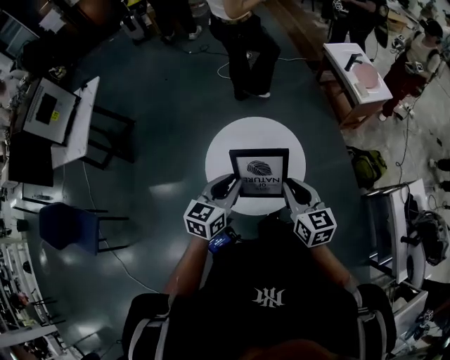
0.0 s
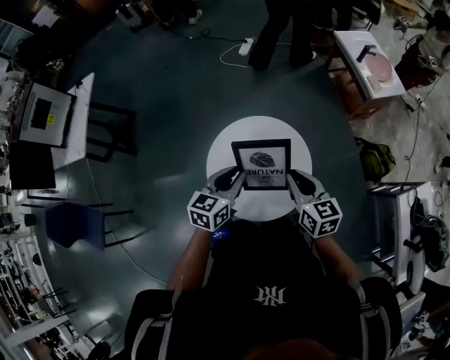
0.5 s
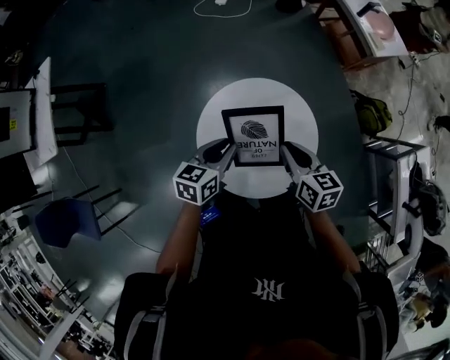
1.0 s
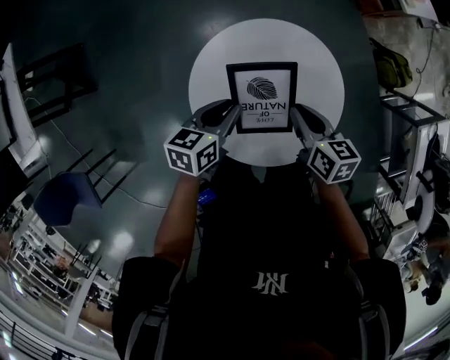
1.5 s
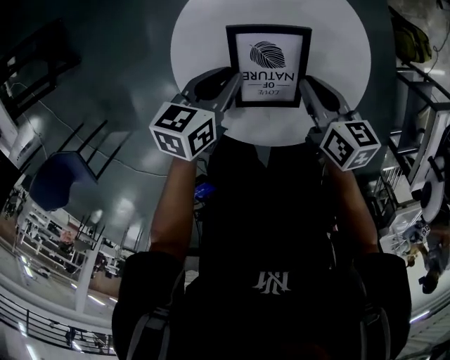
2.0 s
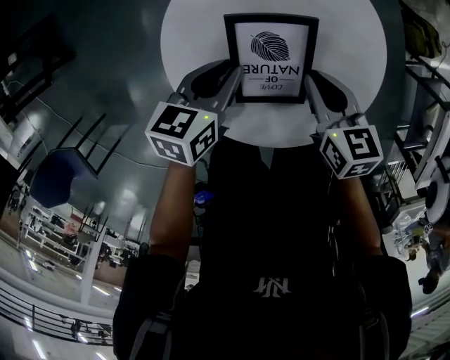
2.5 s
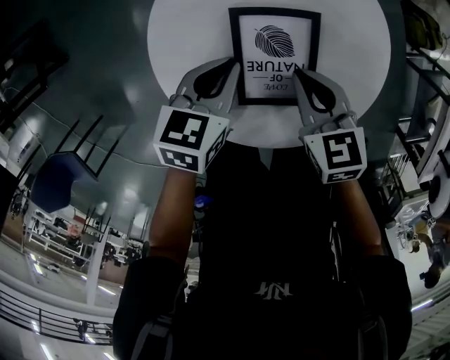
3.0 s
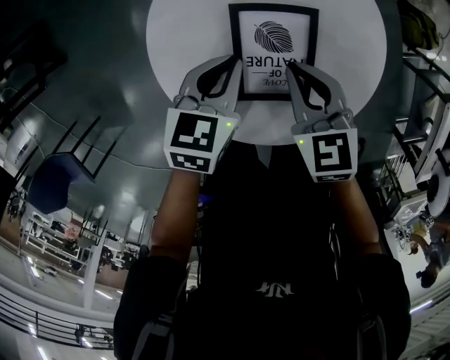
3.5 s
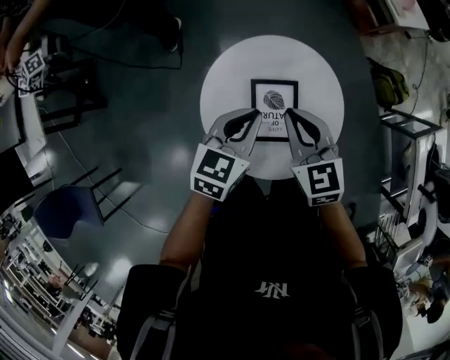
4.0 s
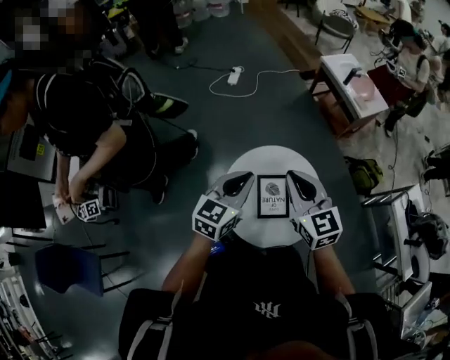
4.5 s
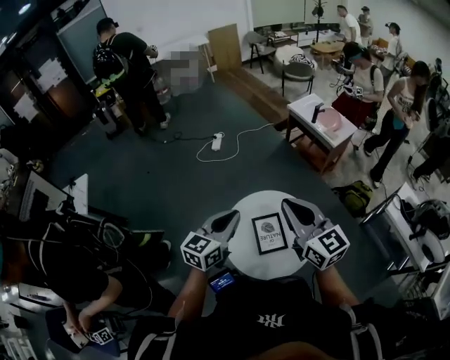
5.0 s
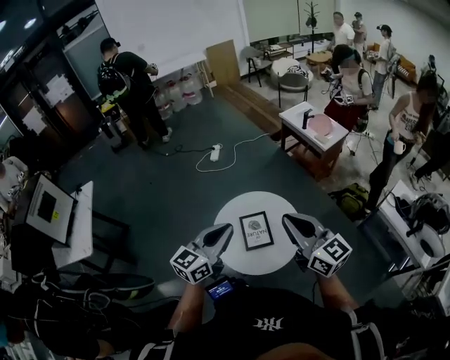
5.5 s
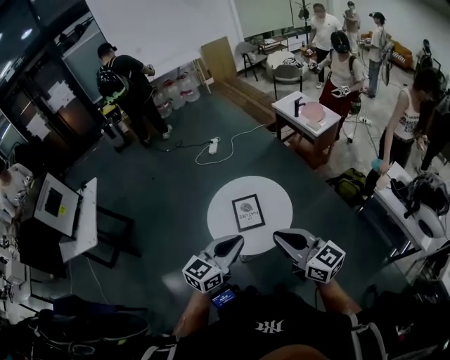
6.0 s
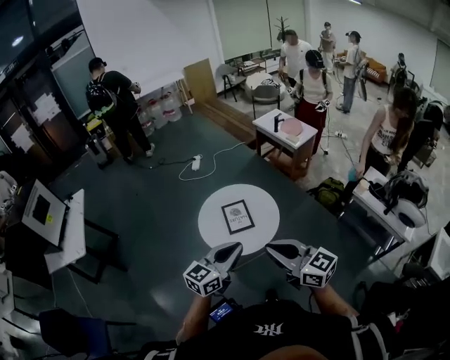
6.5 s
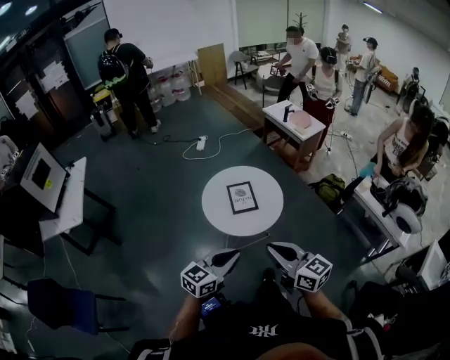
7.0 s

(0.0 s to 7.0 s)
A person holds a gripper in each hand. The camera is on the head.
0.0 s - 2.0 s: The right gripper travels downward by about 30 cm, and turns by approximately 30 degrees; the left gripper is displaced downward and forward by some 35 cm, and swivels roughly 30 degrees.
2.0 s - 3.5 s: The right gripper is displaced to the left by roughly 5 cm, and changes its angle by about 40 degrees.
3.5 s - 5.0 s: The grippers both shift upward by some 50 cm. The left gripper points its fingers some 40 degrees further upward, while the right gripper angles its fingers upward, by roughly 50 degrees.
5.0 s - 7.0 s: Both grippers are carried backward, roughly 40 cm.

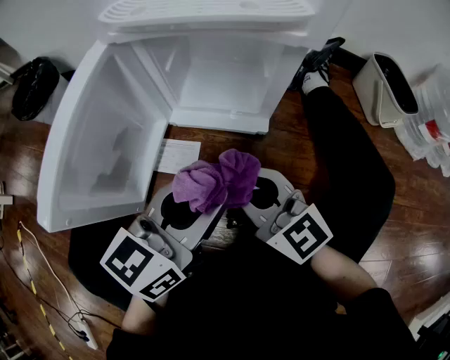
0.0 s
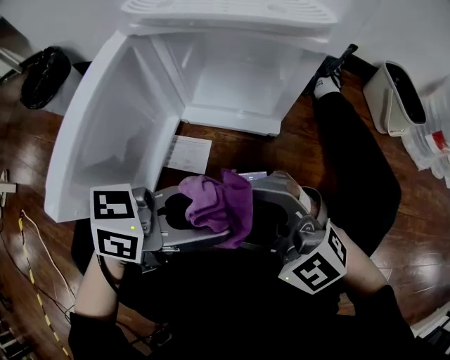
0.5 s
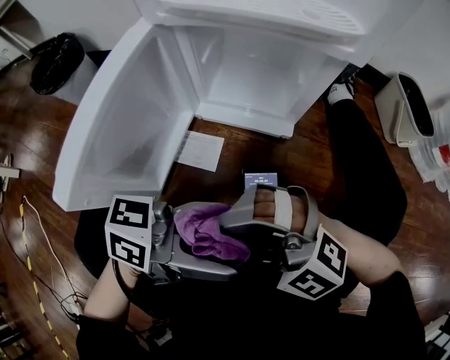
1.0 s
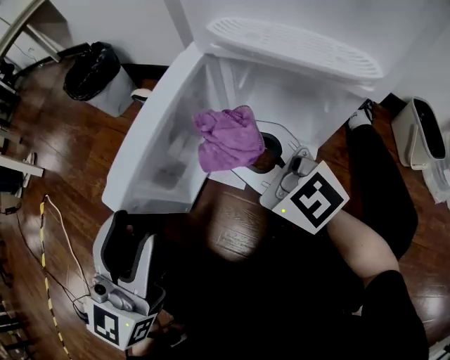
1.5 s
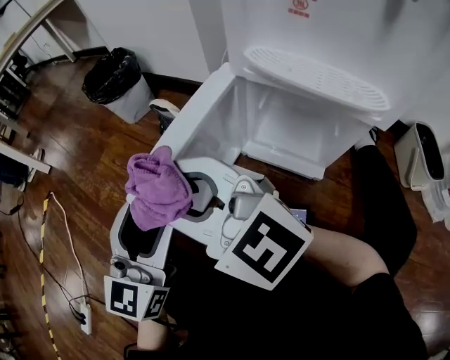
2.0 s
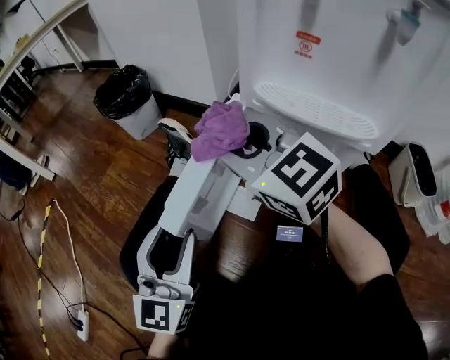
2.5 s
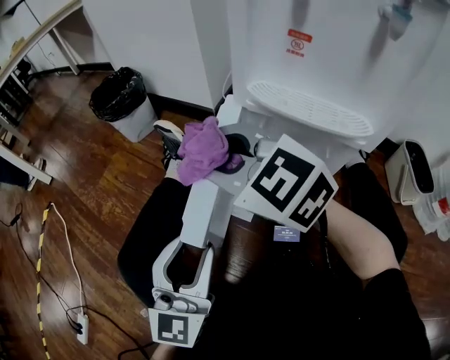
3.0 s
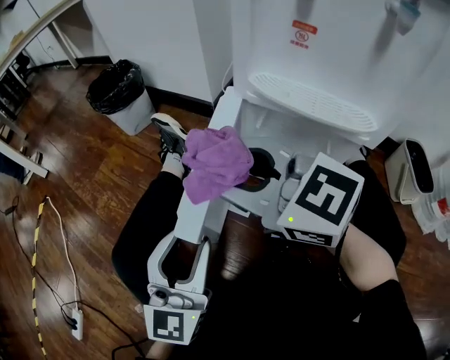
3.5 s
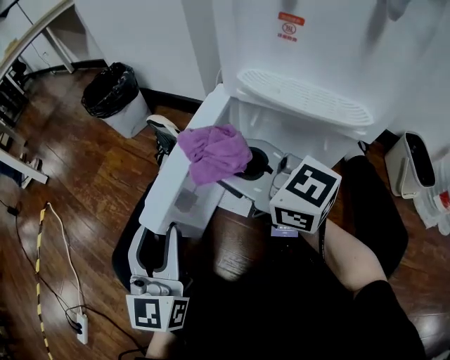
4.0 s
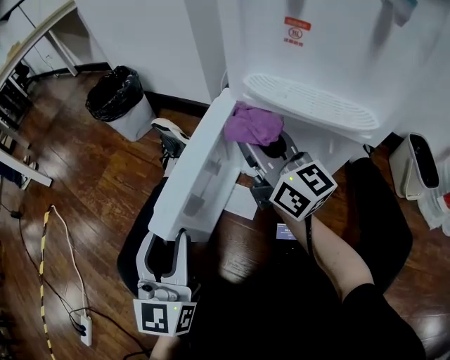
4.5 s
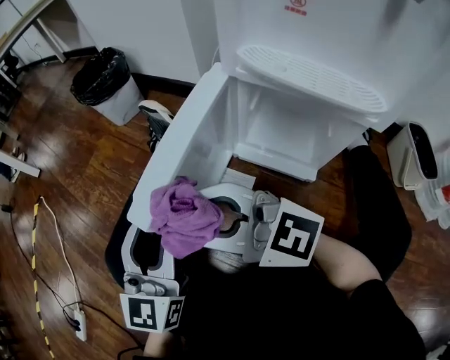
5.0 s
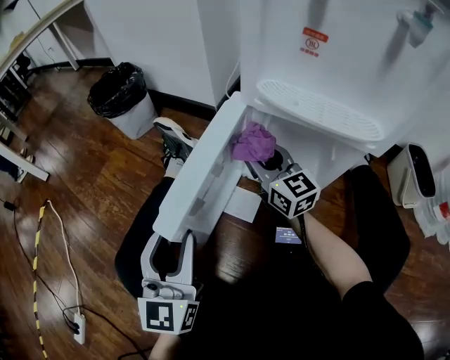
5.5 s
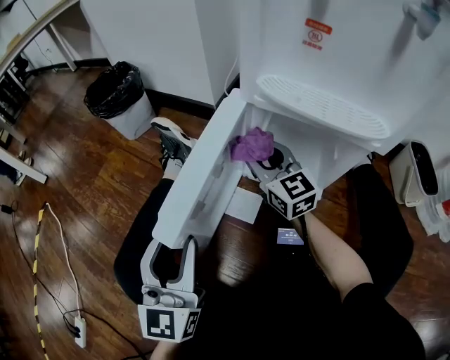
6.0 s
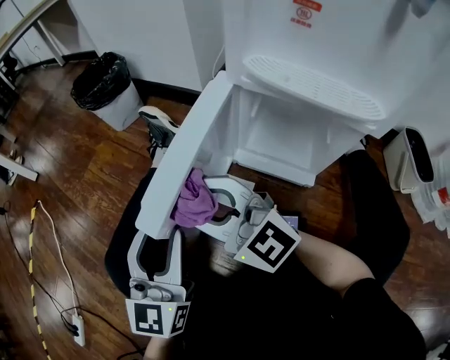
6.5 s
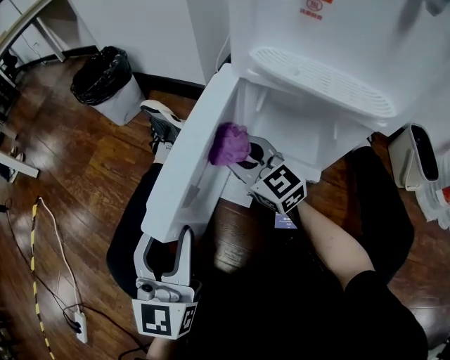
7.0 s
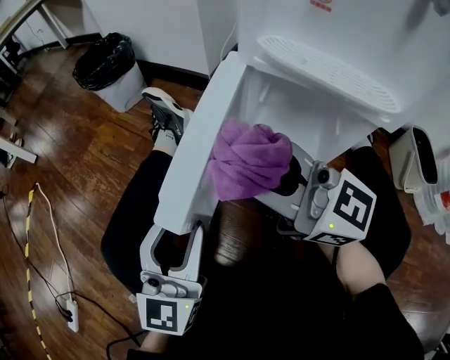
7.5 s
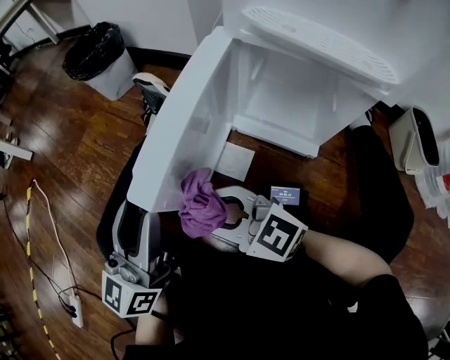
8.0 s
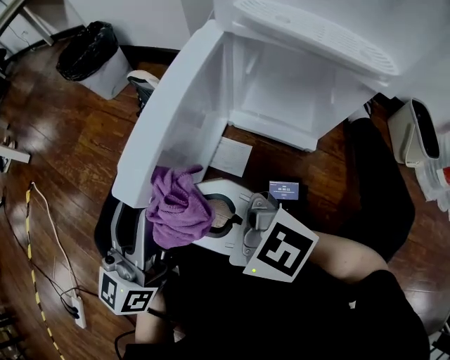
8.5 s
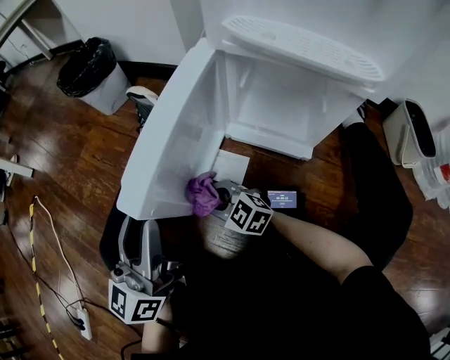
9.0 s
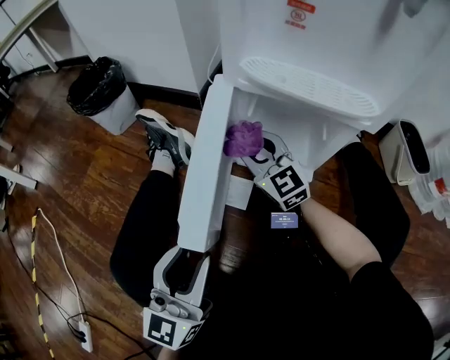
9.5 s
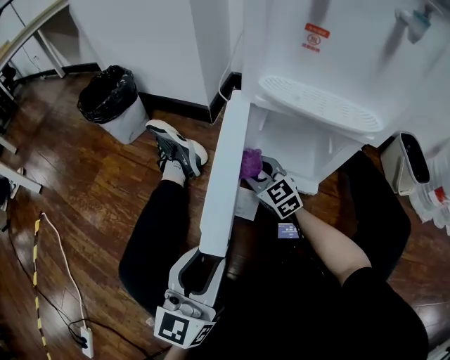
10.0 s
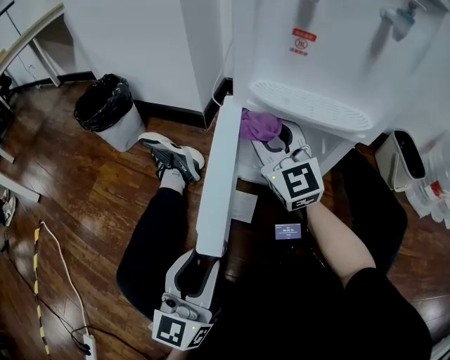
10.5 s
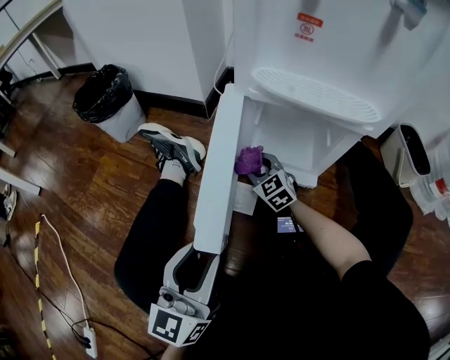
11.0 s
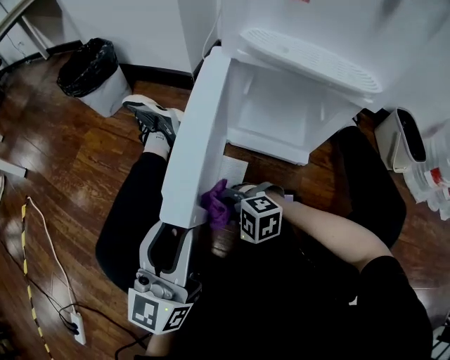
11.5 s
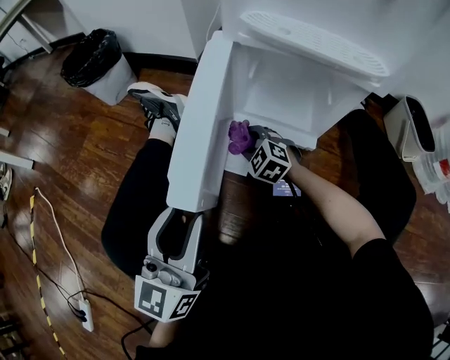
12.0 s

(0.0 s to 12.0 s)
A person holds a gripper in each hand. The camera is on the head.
0.0 s - 2.0 s: The left gripper moves roughly 25 cm, turns by about 50 degrees, and opens, while the right gripper shifts by some 30 cm, turns by some 40 degrees, and opens and closes again.
2.0 s - 4.0 s: The right gripper travels to the right by roughly 10 cm, and turns by roughly 30 degrees. The left gripper closes its fingers.
4.0 s - 6.0 s: The right gripper moves left and right over roughly 15 cm, changing direction 2 times, and changes its angle by roughly 30 degrees.
6.0 s - 8.0 s: The left gripper turns by approximately 20 degrees. Meanwhile the right gripper goes forward and backward, roughly 20 cm each way, reversing 2 times, and swivels approximately 40 degrees.
8.0 s - 10.0 s: The right gripper goes up and down, roughly 25 cm each way, reversing 3 times, and turns by some 40 degrees; the left gripper moves to the right, roughly 5 cm.
10.0 s - 12.0 s: The right gripper travels upward and back again, approximately 20 cm each way, and changes its angle by approximately 30 degrees.

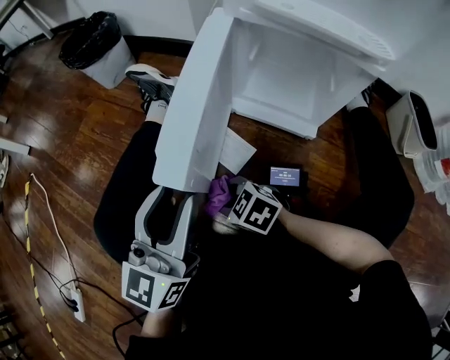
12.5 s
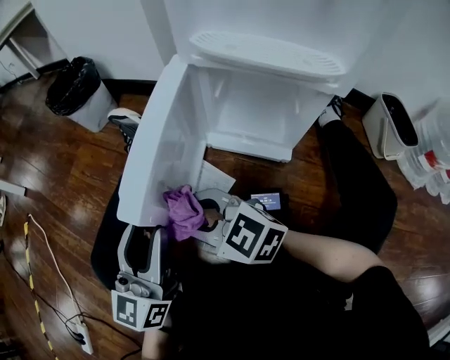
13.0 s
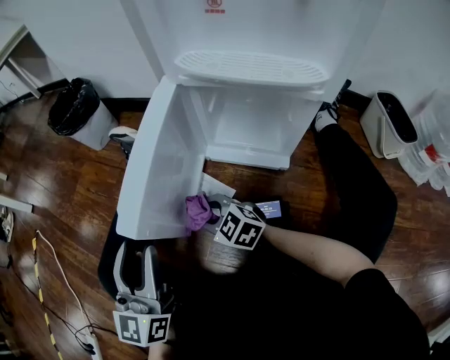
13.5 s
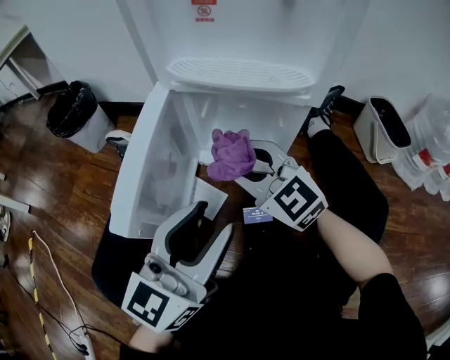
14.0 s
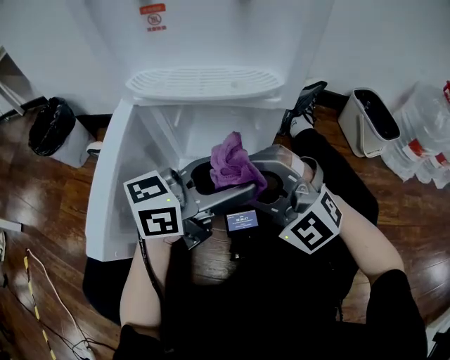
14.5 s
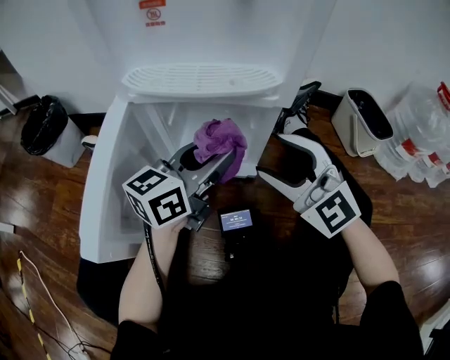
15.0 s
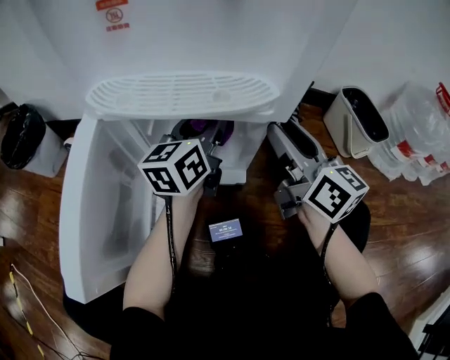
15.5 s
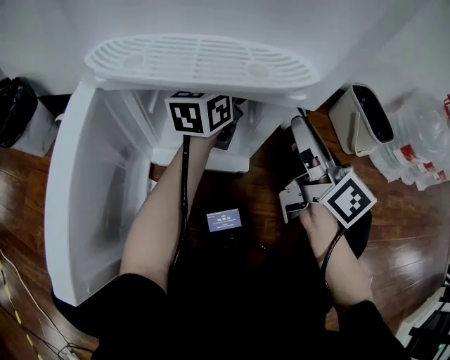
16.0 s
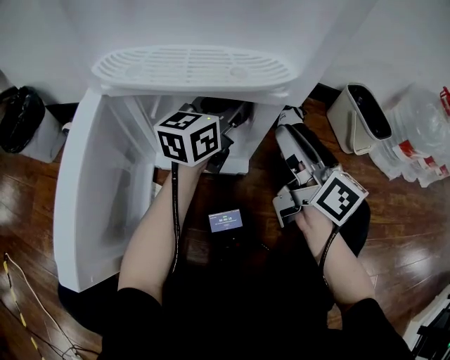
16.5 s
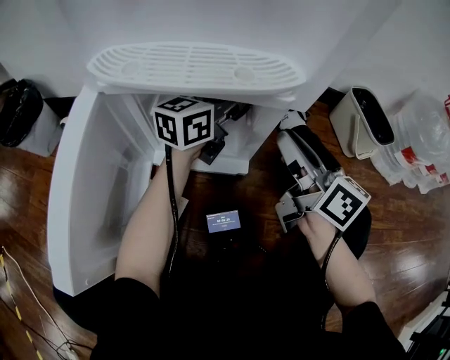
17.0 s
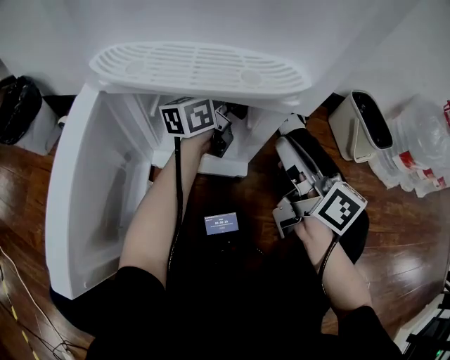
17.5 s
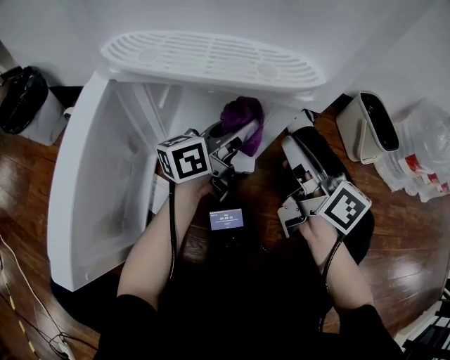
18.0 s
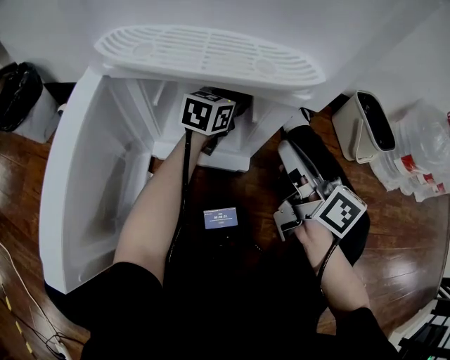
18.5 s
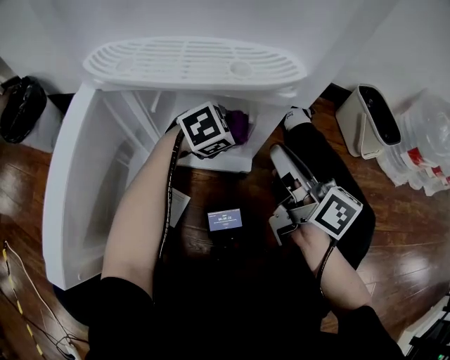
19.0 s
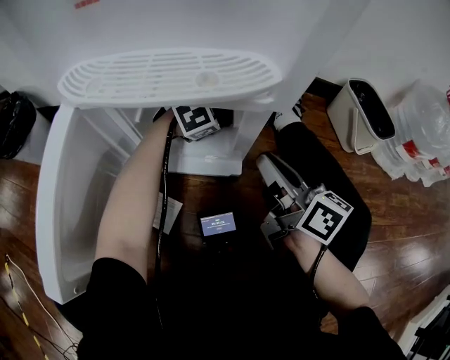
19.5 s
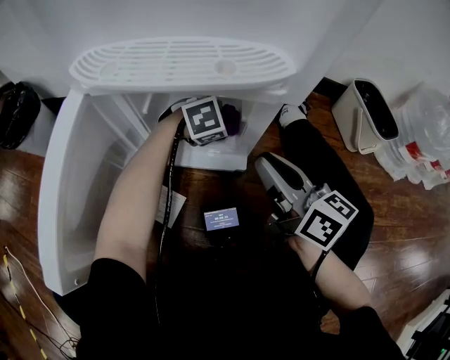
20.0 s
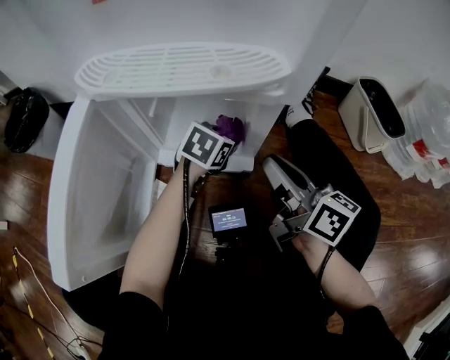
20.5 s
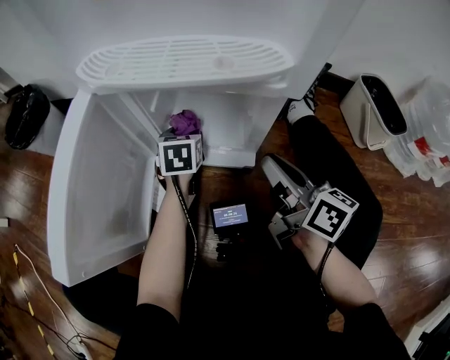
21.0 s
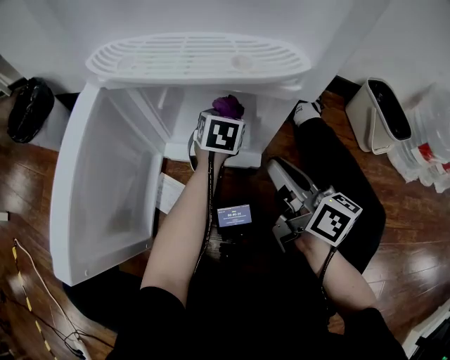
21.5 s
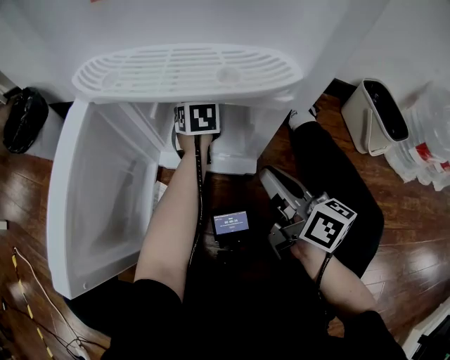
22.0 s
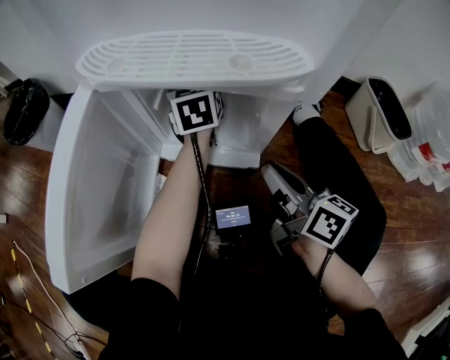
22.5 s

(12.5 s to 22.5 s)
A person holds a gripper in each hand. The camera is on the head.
12.5 s - 14.5 s: The right gripper goes up and down, some 25 cm each way, reversing 2 times, and tips its fingers upward by approximately 40 degrees. The left gripper ends up about 25 cm from where it was, rotates roughly 60 degrees, and opens up.
14.5 s - 16.5 s: The right gripper travels forward and to the right by some 20 cm, rolls clockwise, seen from behind, by roughly 90 degrees, and opens and closes again, while the left gripper travels forward by approximately 20 cm, turns by some 30 degrees, and closes.
16.5 s - 18.5 s: The left gripper travels downward and forward by roughly 10 cm.
18.5 s - 20.5 s: The left gripper goes forward and backward, approximately 10 cm each way, reversing 2 times, and turns by approximately 30 degrees.
20.5 s - 22.5 s: The left gripper moves some 20 cm, and rotates roughly 50 degrees.
